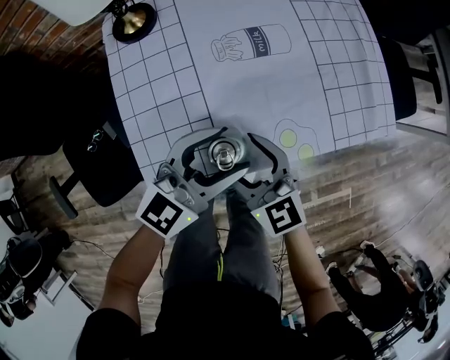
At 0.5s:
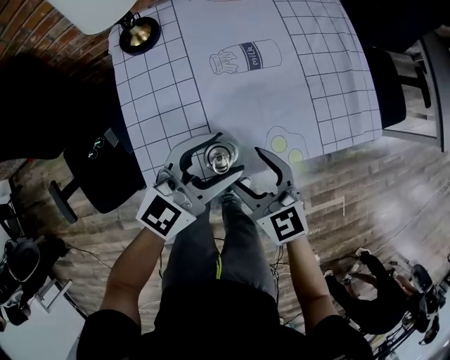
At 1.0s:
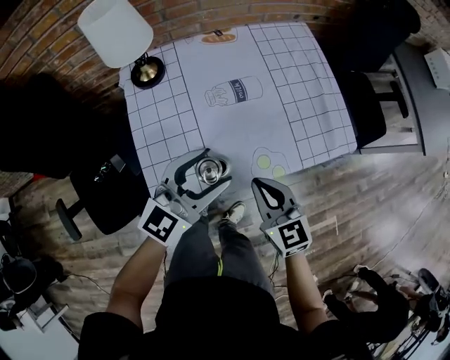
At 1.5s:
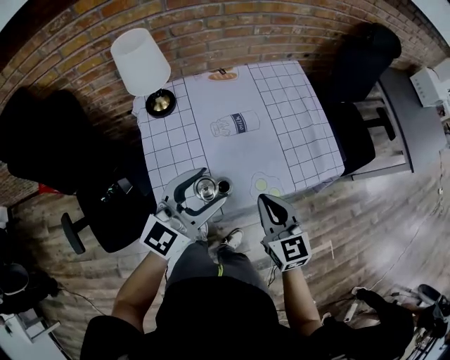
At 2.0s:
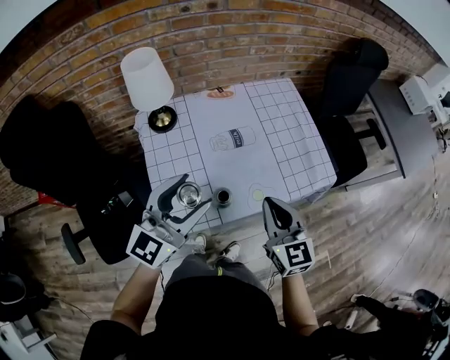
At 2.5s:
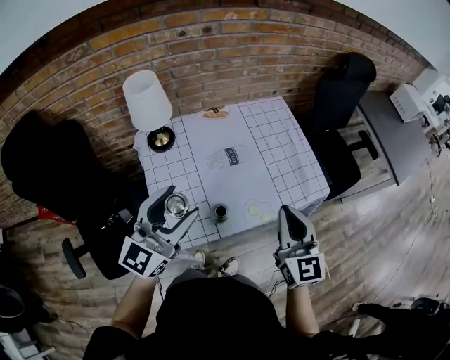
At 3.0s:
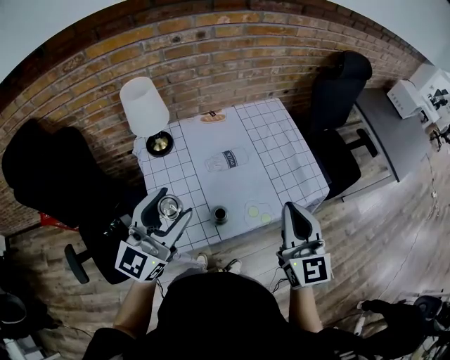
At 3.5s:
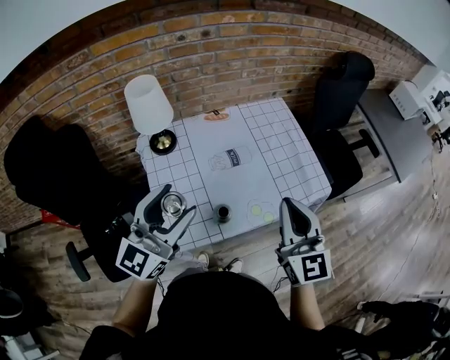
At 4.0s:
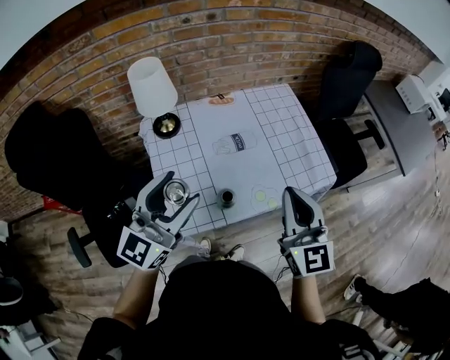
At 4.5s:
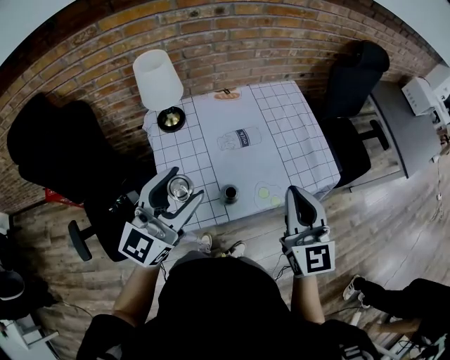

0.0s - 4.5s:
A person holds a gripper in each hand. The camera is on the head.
0.0s - 2.0s: The left gripper is displaced upward and to the left by approximately 20 cm, while the right gripper shifts some 20 cm upward and to the right, swivels about 20 degrees, and closes up.
2.0s - 4.5s: The left gripper is displaced upward by approximately 5 cm. The right gripper heads upward, covering about 10 cm.

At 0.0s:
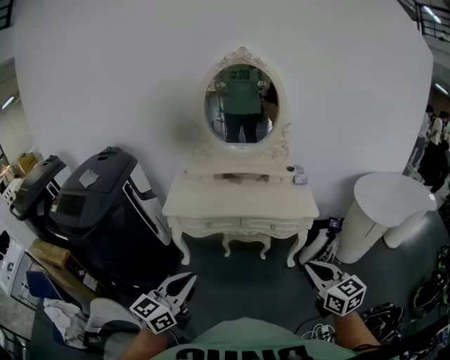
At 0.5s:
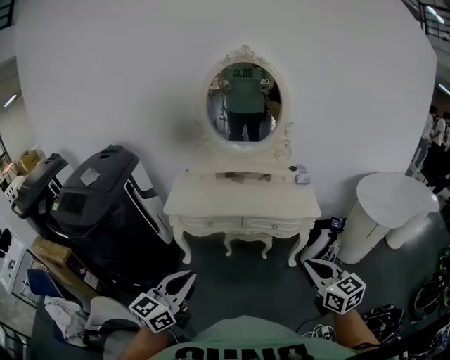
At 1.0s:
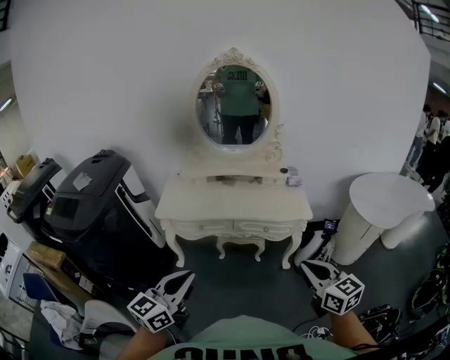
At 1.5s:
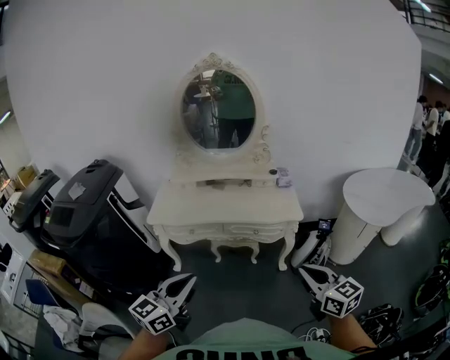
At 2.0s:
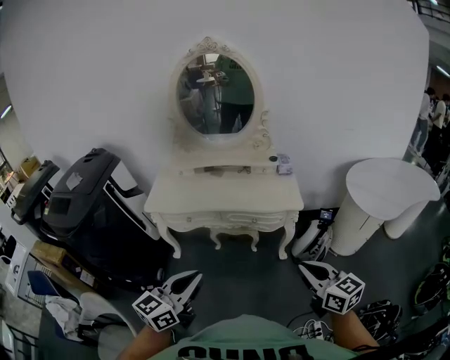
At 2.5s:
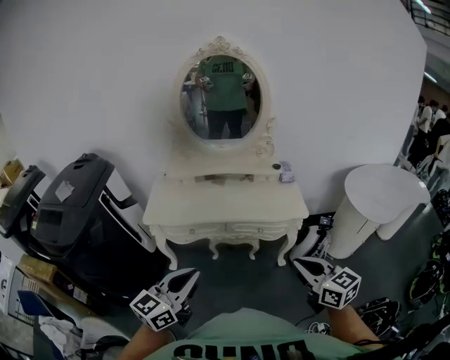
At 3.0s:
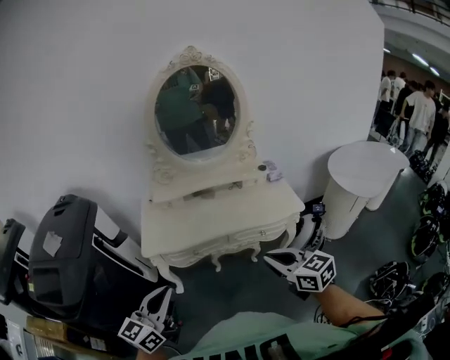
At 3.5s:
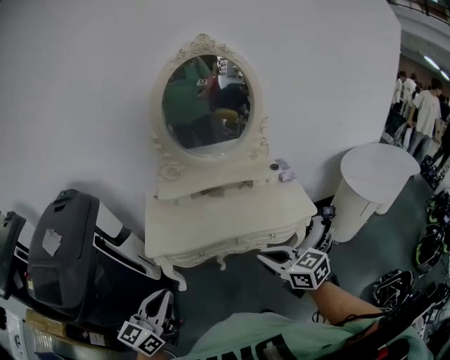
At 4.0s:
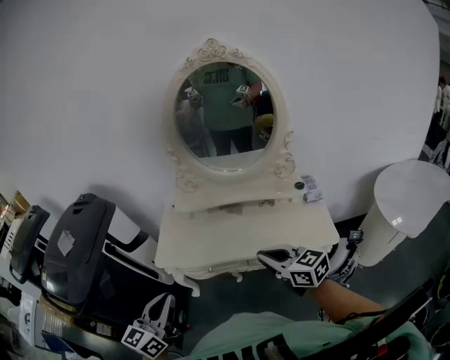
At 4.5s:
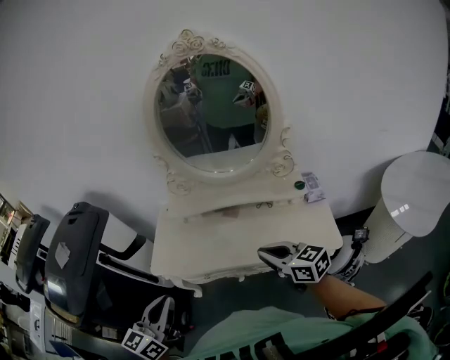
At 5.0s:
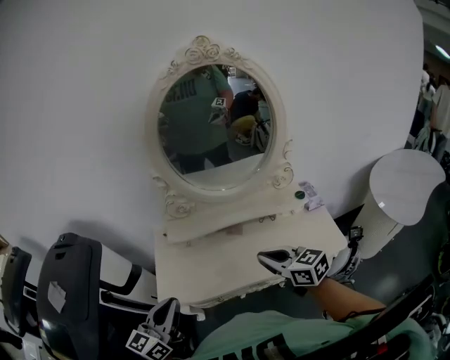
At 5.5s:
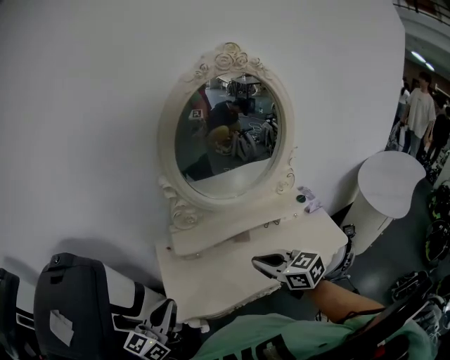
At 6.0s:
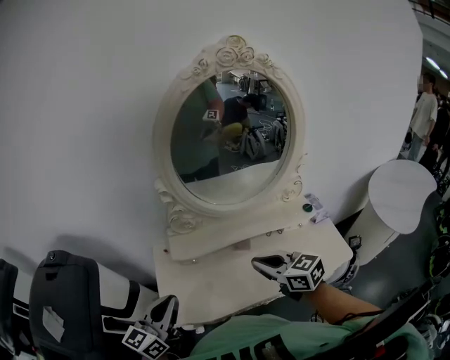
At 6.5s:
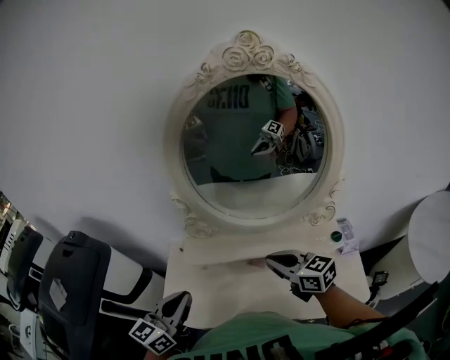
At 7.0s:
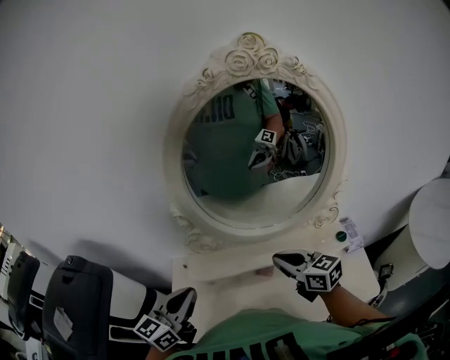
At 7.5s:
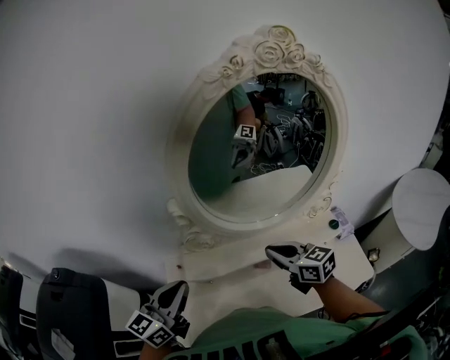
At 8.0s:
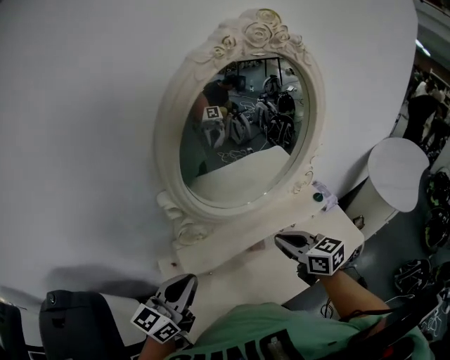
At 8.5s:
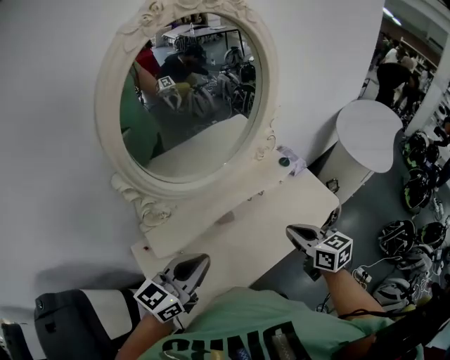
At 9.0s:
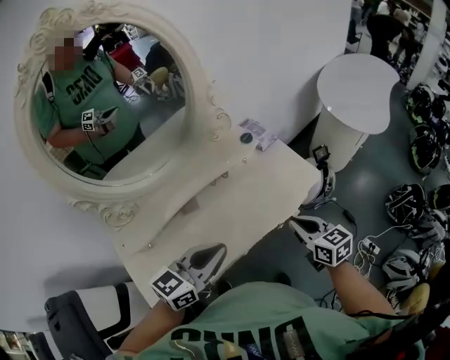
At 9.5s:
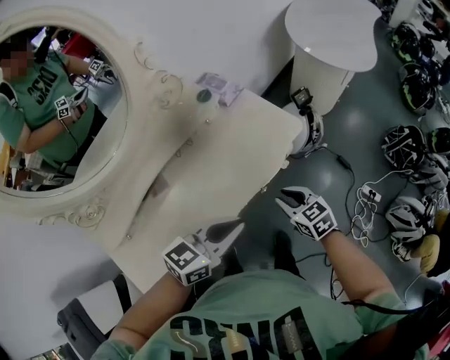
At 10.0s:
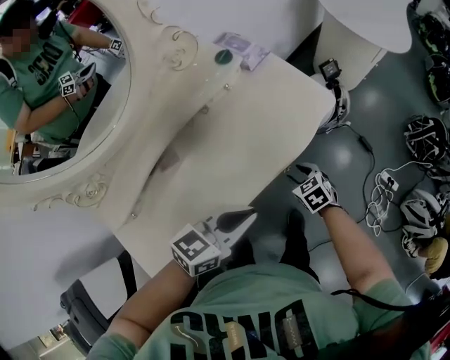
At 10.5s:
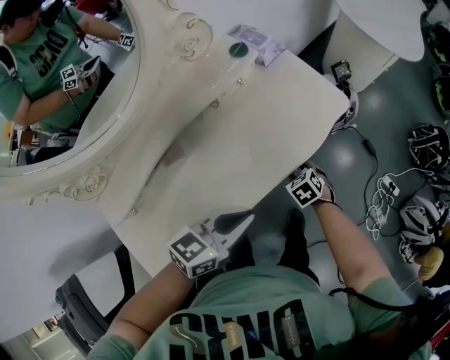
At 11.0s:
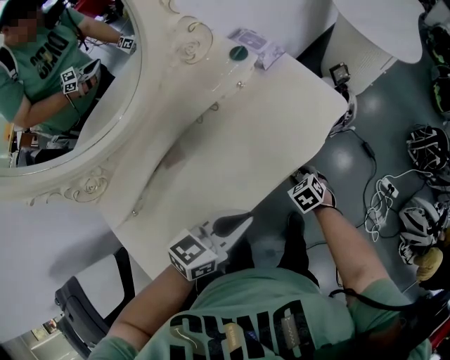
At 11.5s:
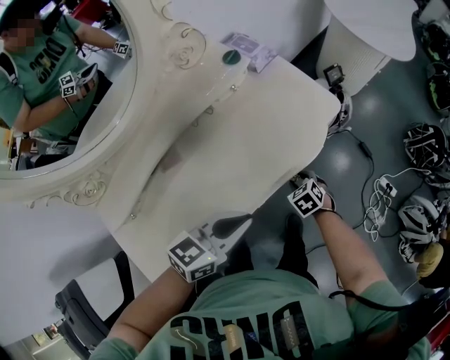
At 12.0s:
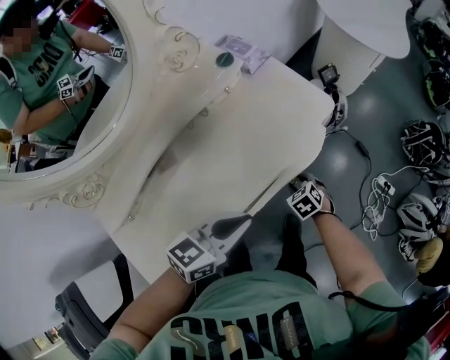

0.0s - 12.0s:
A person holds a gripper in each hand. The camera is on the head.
0.0s - 2.0s: The two grippers go approximately 15 cm to the right.
2.0s - 4.0s: Both grippers travel together forward and to the left, about 40 cm.
4.0s - 6.0s: The two grippers go about 25 cm forward.
6.0s - 8.0s: The left gripper shifts by about 15 cm; the right gripper moves roughly 10 cm, and changes its angle by some 20 degrees.
8.0s - 10.0s: The right gripper moves downward, about 40 cm, angles its fingers downward, by approximately 40 degrees, and opens up; the left gripper changes place by roughly 50 cm, and swivels approximately 50 degrees.
10.0s - 12.0s: The grippers move only a little.

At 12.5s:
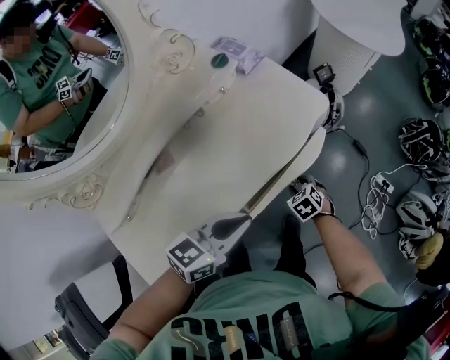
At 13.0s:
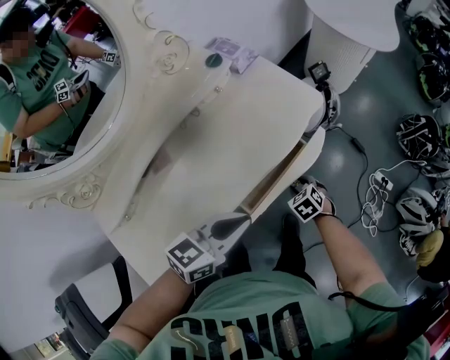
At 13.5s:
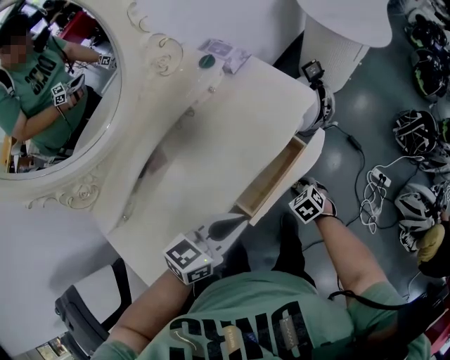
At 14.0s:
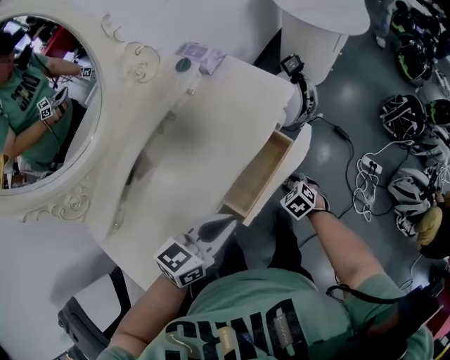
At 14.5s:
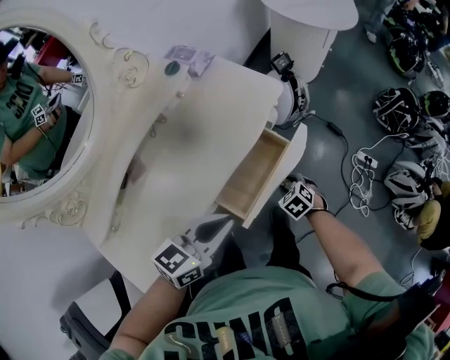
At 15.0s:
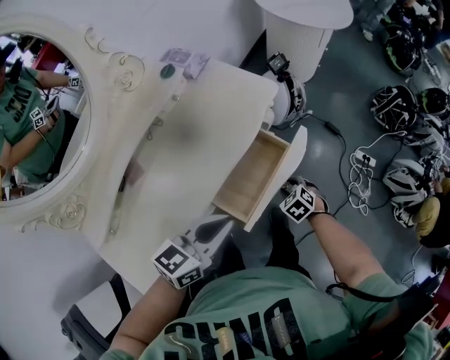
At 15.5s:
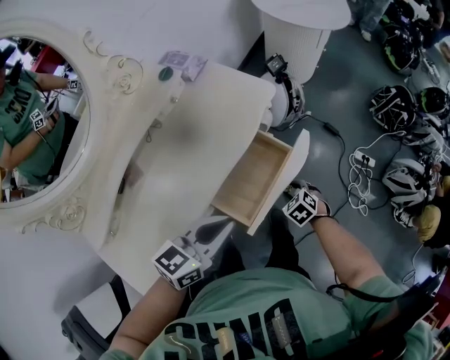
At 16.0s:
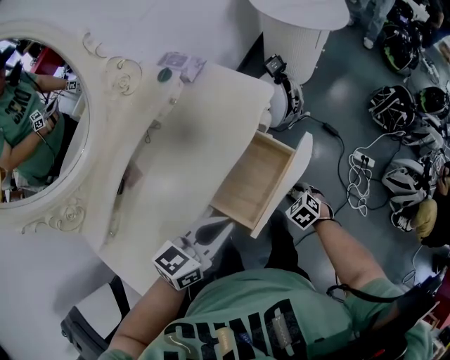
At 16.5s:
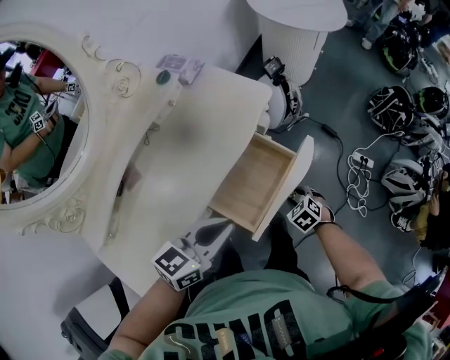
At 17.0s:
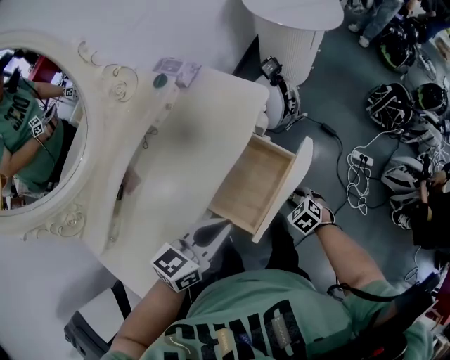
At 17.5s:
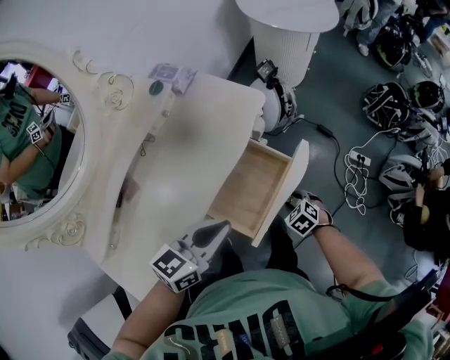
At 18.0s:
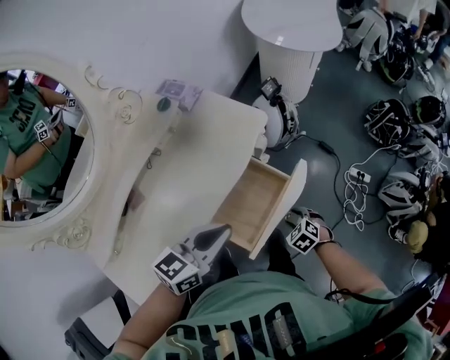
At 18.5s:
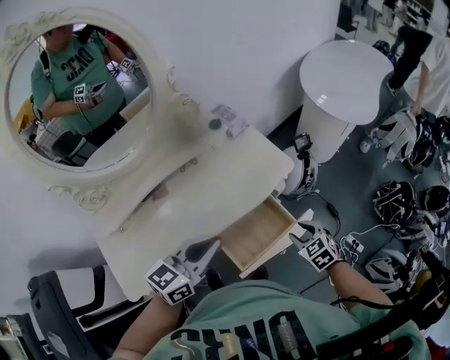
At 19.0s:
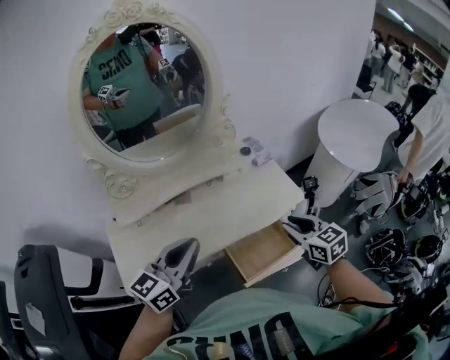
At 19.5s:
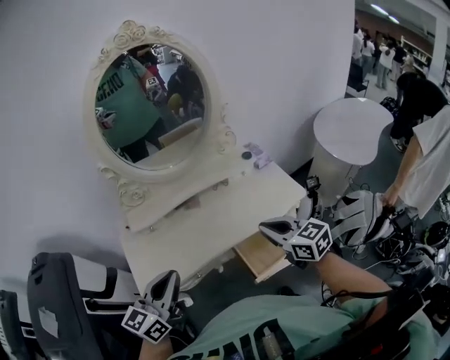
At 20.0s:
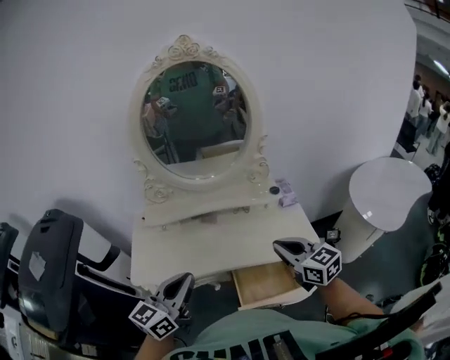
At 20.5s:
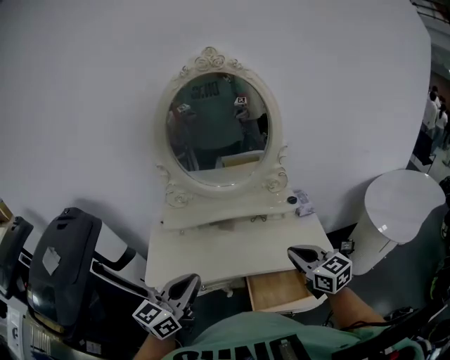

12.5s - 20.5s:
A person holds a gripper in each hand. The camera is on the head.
12.5s - 14.5s: The right gripper is displaced to the right by about 5 cm; the left gripper moves roughly 5 cm.
14.5s - 16.5s: The right gripper goes about 5 cm to the right.
16.5s - 18.5s: The left gripper is displaced upward by approximately 10 cm, and rotates some 30 degrees, while the right gripper is displaced upward and forward by about 20 cm, and rotates approximately 20 degrees.
18.5s - 20.5s: The left gripper ends up some 25 cm from where it was, and turns by some 50 degrees. The right gripper shifts roughly 30 cm upward, tilts its fingers about 40 degrees upward, and closes its fingers.

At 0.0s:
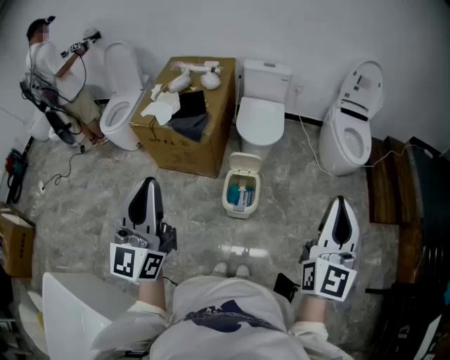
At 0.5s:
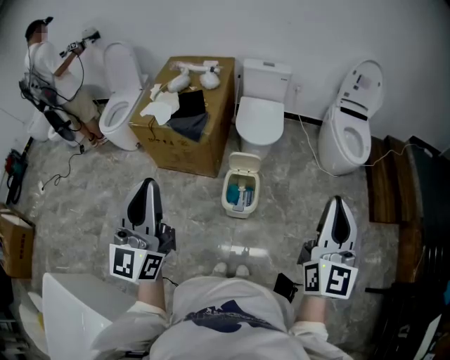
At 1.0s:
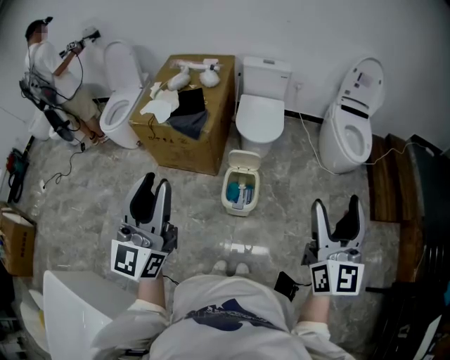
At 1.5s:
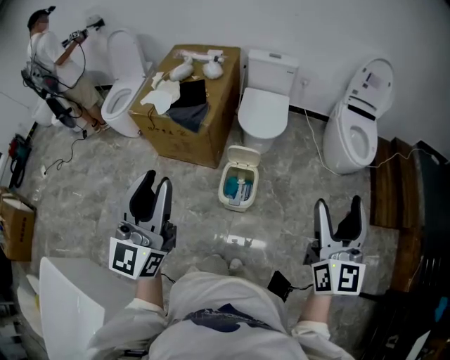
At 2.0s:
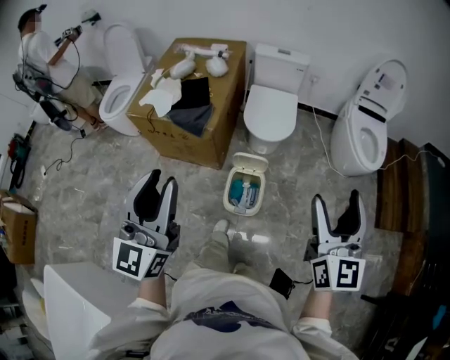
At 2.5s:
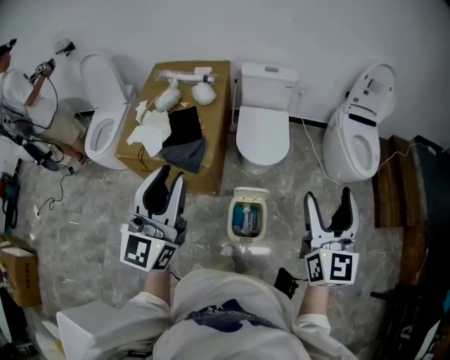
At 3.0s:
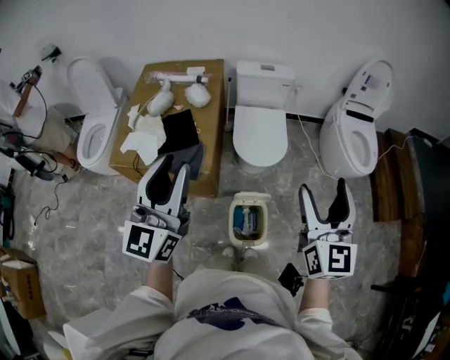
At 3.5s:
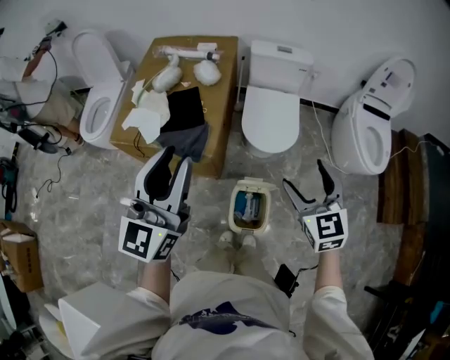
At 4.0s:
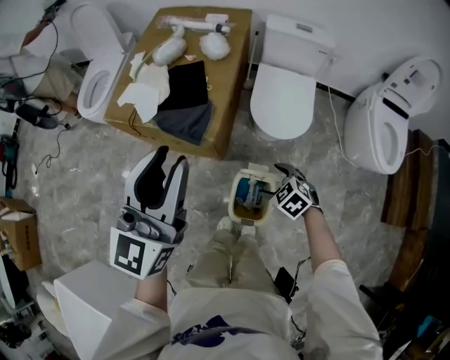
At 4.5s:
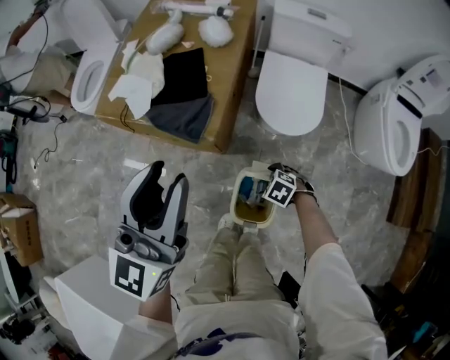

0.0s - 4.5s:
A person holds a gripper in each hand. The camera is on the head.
0.0s - 2.0s: The two grippers go some 15 cm forward. The left gripper opens; the right gripper opens its fingers.
2.0s - 4.5s: The right gripper goes some 50 cm downward, and points its fingers roughly 70 degrees further downward, while the left gripper shifts by about 30 cm.
